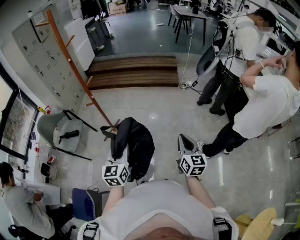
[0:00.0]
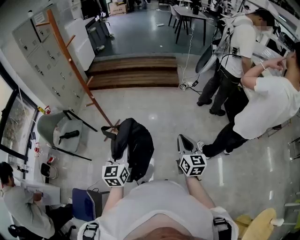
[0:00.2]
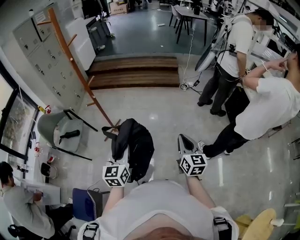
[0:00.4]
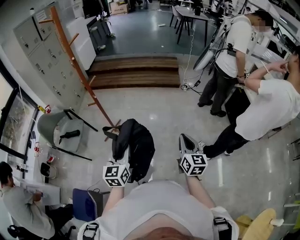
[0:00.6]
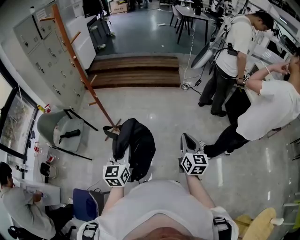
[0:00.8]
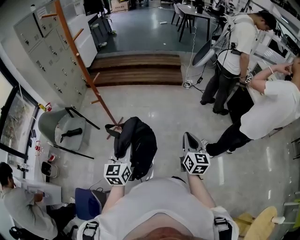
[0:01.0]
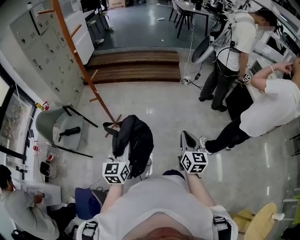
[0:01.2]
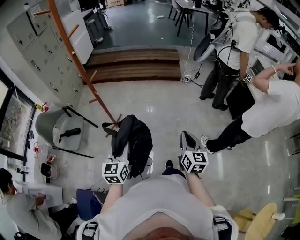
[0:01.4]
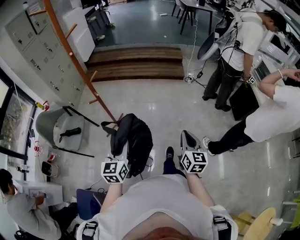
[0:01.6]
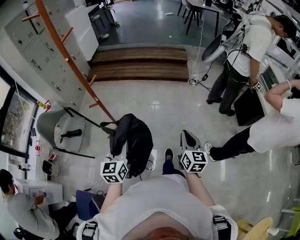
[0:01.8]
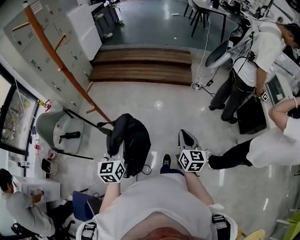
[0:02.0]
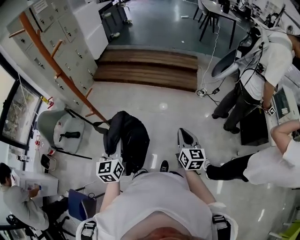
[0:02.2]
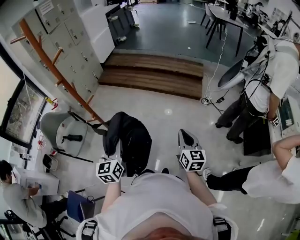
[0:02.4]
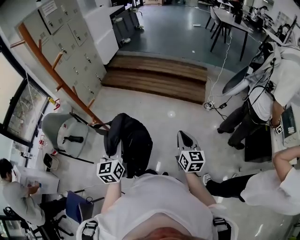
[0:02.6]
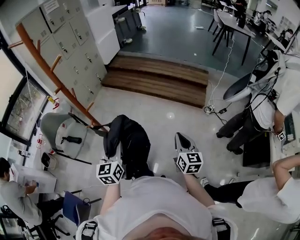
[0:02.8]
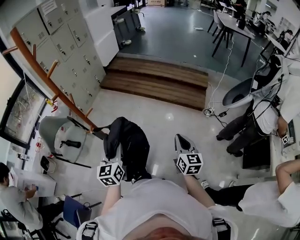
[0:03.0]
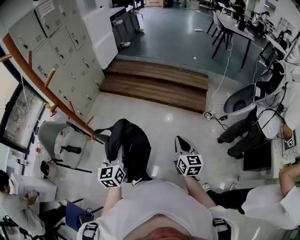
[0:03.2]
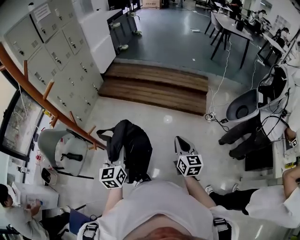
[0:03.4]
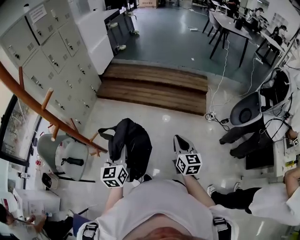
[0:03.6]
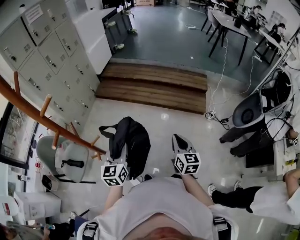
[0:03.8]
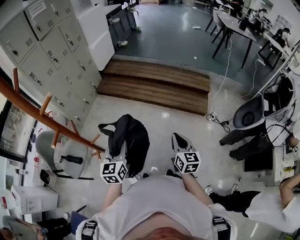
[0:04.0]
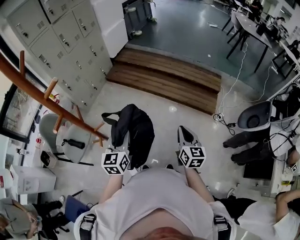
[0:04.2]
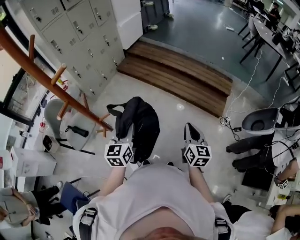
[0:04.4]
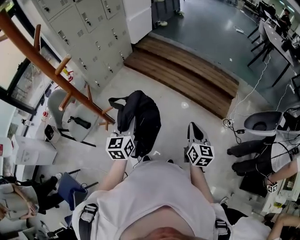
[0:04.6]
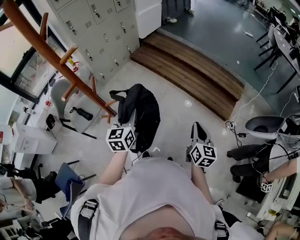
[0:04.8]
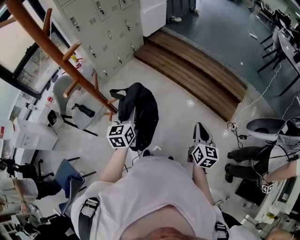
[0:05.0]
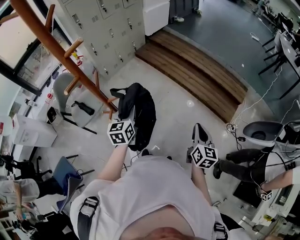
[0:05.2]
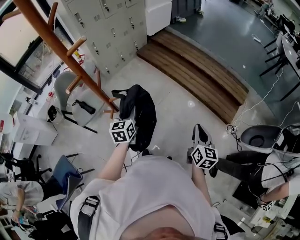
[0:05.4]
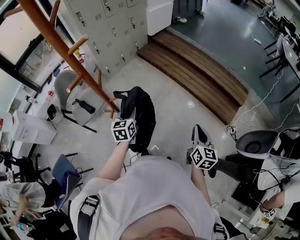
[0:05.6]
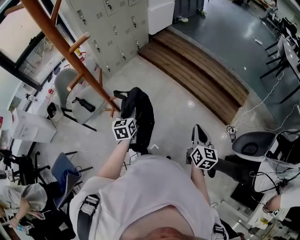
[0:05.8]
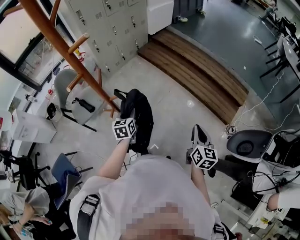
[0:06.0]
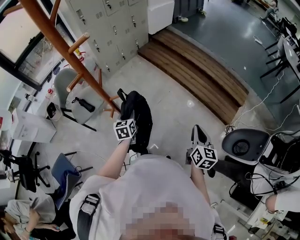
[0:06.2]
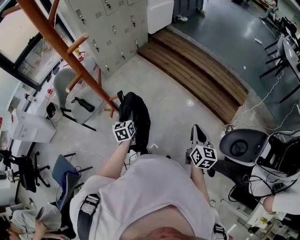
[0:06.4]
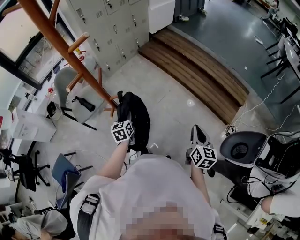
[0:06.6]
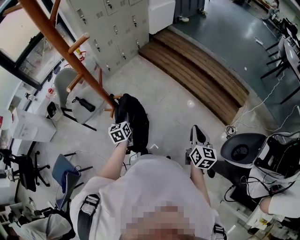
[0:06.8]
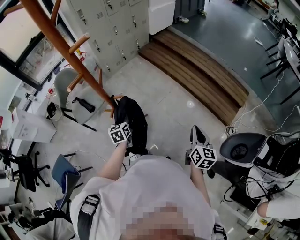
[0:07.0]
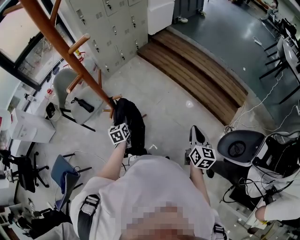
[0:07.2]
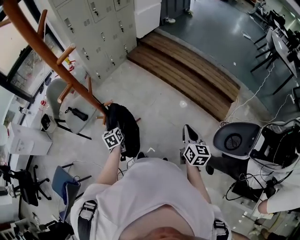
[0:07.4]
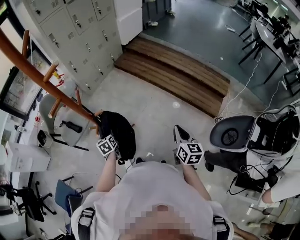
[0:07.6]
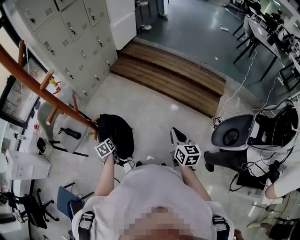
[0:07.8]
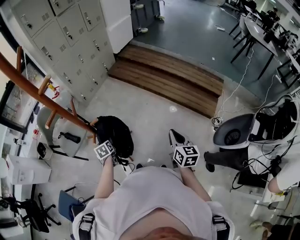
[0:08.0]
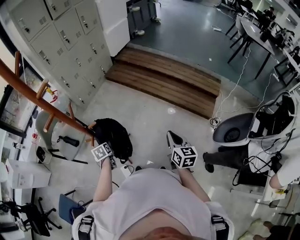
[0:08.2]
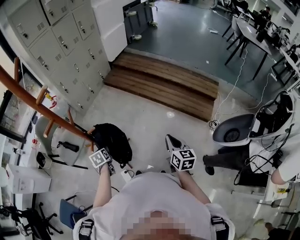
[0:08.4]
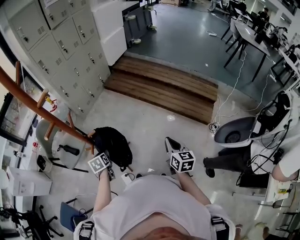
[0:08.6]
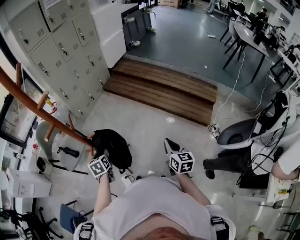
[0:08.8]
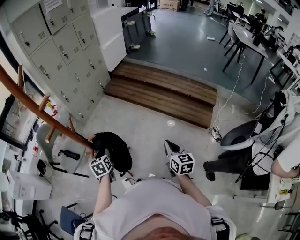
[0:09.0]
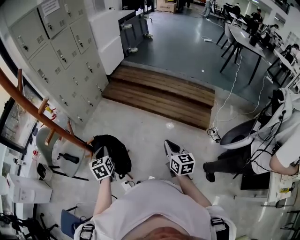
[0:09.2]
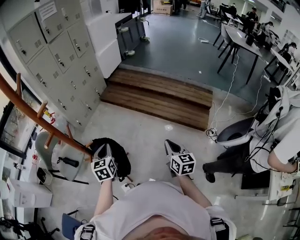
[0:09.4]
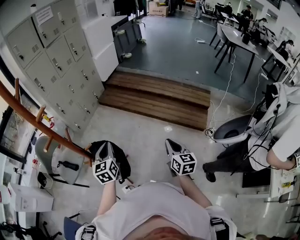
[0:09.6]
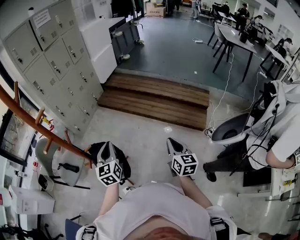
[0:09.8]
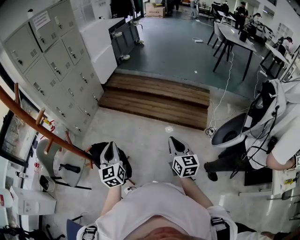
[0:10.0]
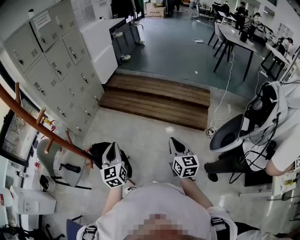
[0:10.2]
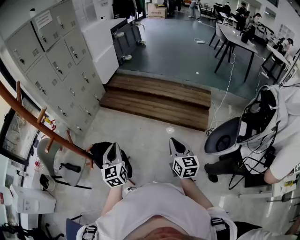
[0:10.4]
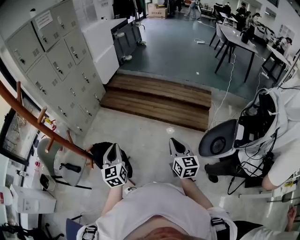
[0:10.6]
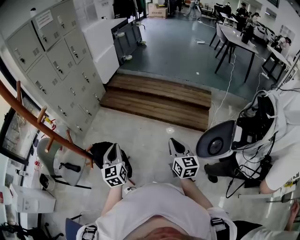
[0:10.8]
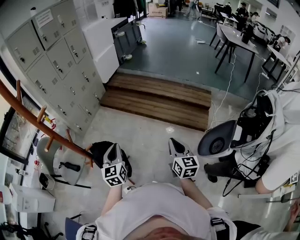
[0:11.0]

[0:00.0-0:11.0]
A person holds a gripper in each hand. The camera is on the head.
0.0 to 1.6 s: The grippers both shift to the left and forward by about 10 cm.
1.6 to 3.2 s: The grippers both shift forward by some 40 cm. The right gripper turns by roughly 20 degrees. Meanwhile the left gripper changes its angle by about 20 degrees.
3.2 to 4.8 s: Both grippers move forward, approximately 15 cm.
4.8 to 6.2 s: The left gripper heads downward and to the left, covering approximately 15 cm, and rotates roughly 20 degrees.
6.2 to 7.8 s: The left gripper moves downward and to the left, some 10 cm, and opens.
7.8 to 9.4 s: The left gripper is displaced upward and to the right by roughly 25 cm, swivels about 30 degrees, and closes up.
9.4 to 11.0 s: The left gripper heads to the right, covering approximately 5 cm.

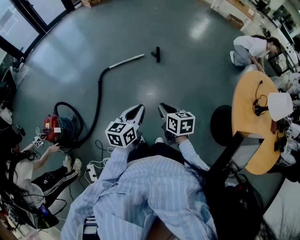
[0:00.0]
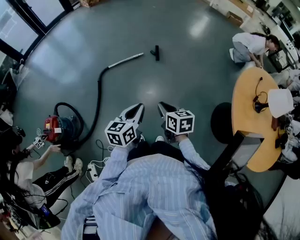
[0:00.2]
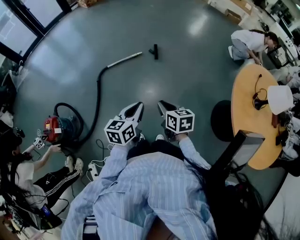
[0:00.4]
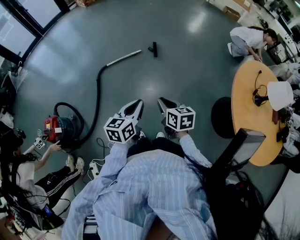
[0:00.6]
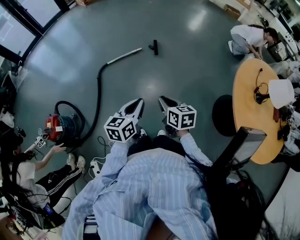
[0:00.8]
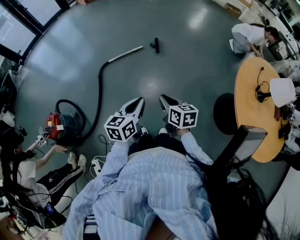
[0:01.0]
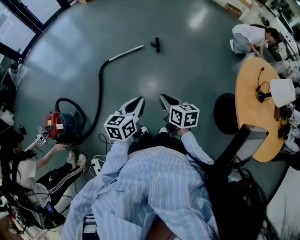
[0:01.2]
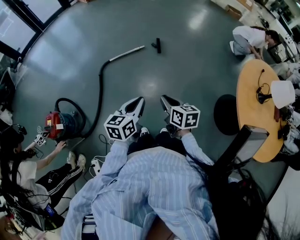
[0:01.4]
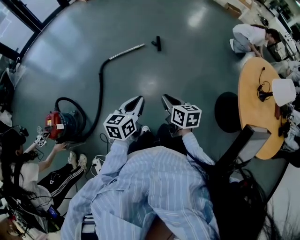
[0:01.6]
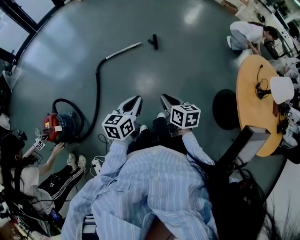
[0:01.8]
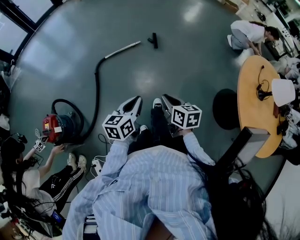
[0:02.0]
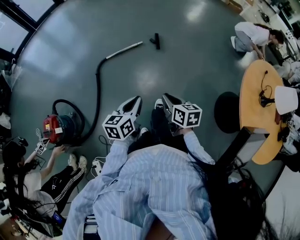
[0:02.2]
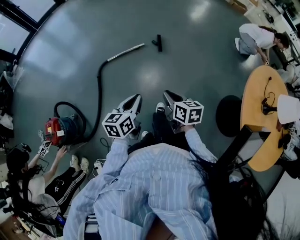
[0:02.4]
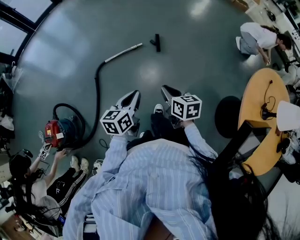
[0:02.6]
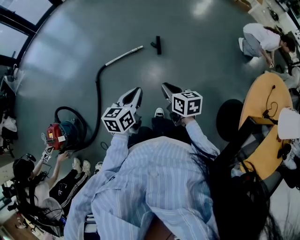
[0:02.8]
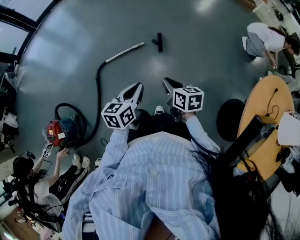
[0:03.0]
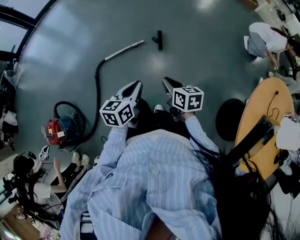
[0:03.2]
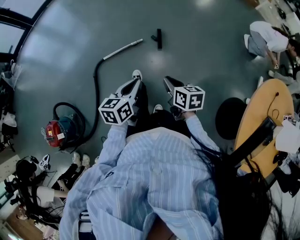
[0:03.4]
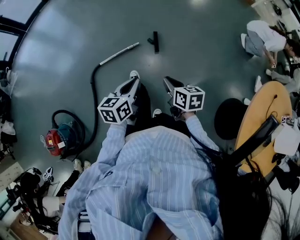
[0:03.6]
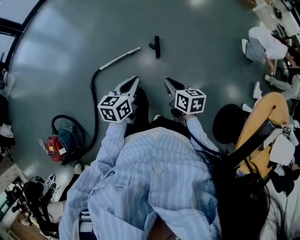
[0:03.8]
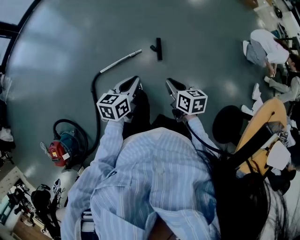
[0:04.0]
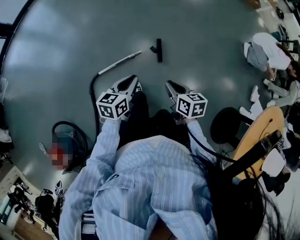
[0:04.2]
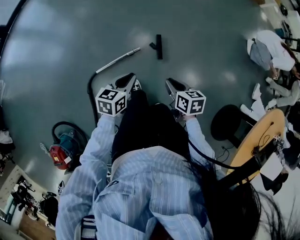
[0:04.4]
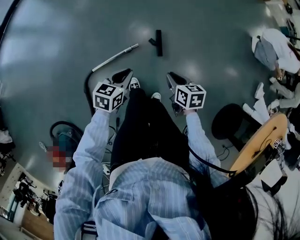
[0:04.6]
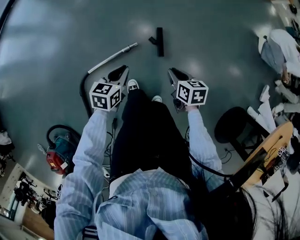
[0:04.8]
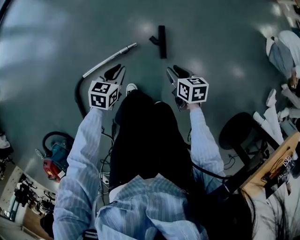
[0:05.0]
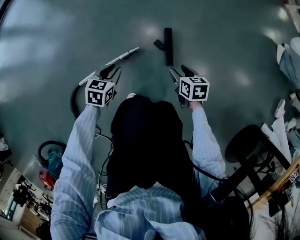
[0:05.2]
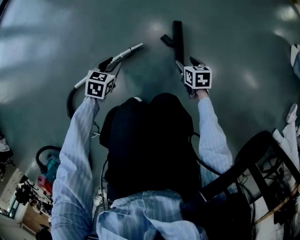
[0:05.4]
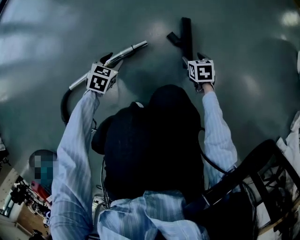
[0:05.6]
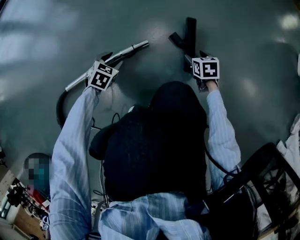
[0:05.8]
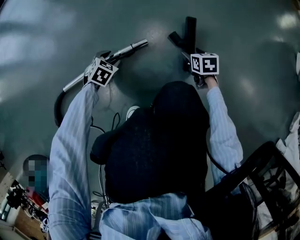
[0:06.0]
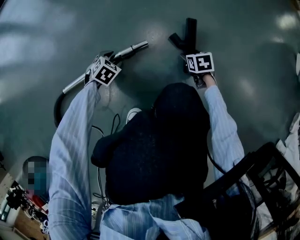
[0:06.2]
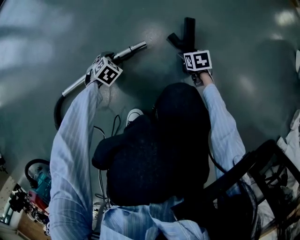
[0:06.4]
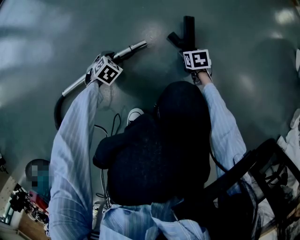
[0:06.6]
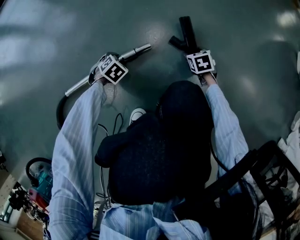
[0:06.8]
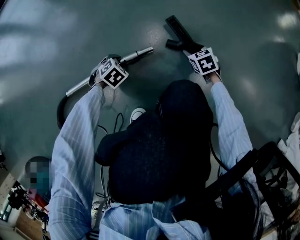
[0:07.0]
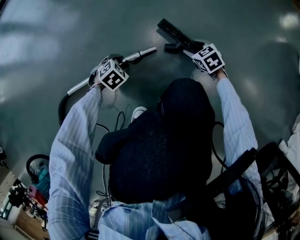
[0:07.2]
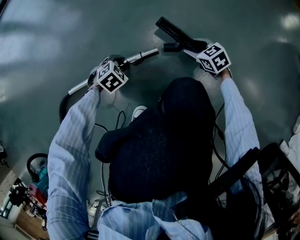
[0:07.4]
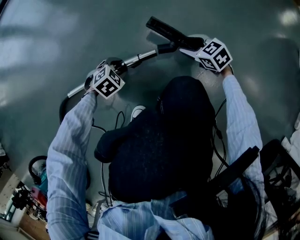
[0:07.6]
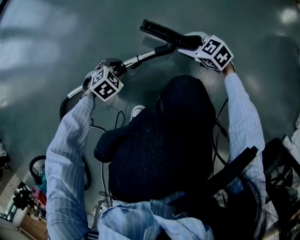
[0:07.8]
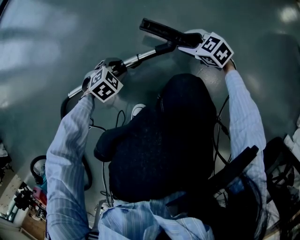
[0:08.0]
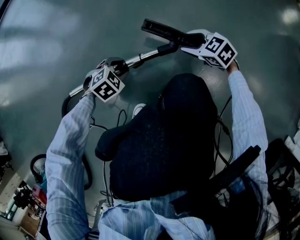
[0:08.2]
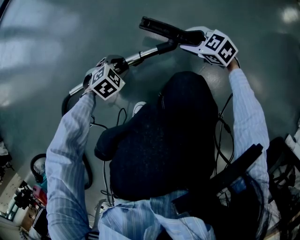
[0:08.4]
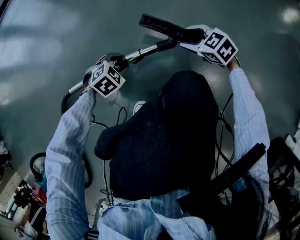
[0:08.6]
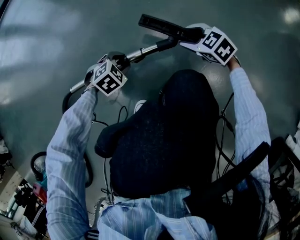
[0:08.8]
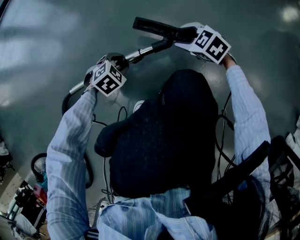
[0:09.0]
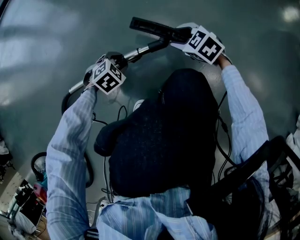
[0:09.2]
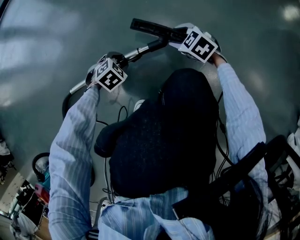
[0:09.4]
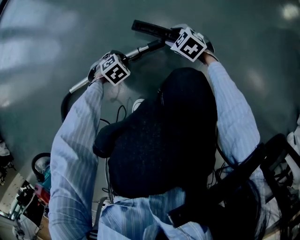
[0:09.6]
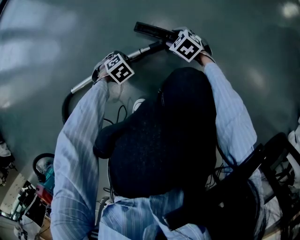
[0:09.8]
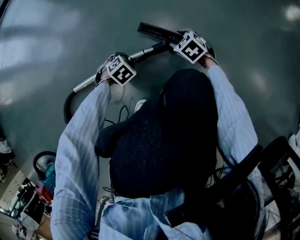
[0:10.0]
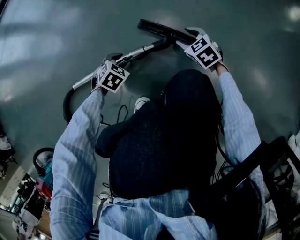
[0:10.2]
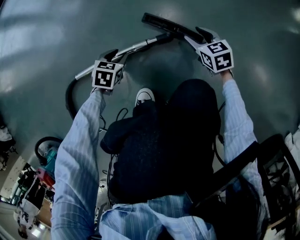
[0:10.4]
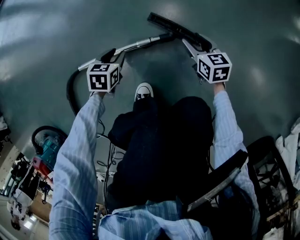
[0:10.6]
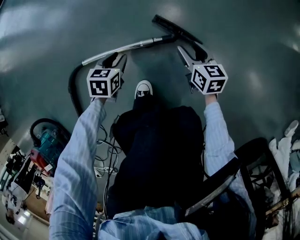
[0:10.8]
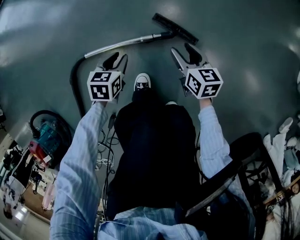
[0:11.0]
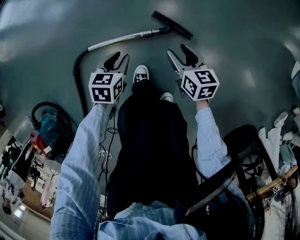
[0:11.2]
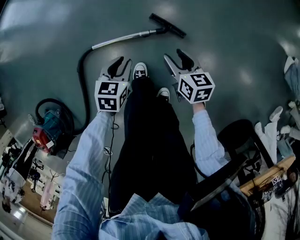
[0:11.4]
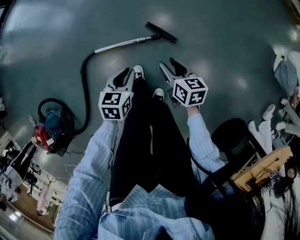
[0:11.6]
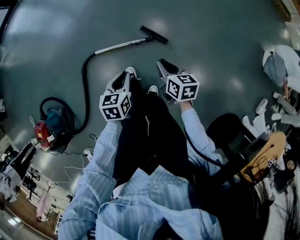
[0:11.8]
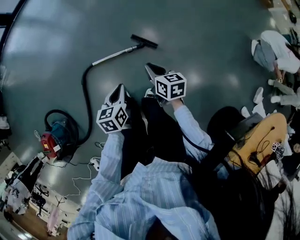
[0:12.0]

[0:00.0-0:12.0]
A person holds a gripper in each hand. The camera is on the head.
0.0 to 1.6 s: The left gripper is displaced to the left by roughly 5 cm.
1.6 to 3.0 s: The two grippers go about 30 cm forward.
3.0 to 4.4 s: The grippers both shift forward by about 35 cm.
4.4 to 6.0 s: The two grippers go about 70 cm downward. The left gripper tilts its fingers roughly 30 degrees downward, and opens, while the right gripper turns by about 20 degrees, and opens up.
6.0 to 7.6 s: The right gripper ends up roughly 10 cm from where it was, and turns by about 40 degrees. Meanwhile the left gripper changes place by some 5 cm.
7.6 to 9.0 s: The grippers move only a little.
9.0 to 10.4 s: The right gripper goes downward and returns, some 10 cm each way, and changes its angle by some 30 degrees. Meanwhile the left gripper travels downward and back again, about 5 cm each way, and rotates about 40 degrees.
10.4 to 12.0 s: The two grippers go approximately 70 cm upward. The right gripper changes its angle by some 30 degrees, and closes up; the left gripper rotates some 40 degrees, and closes up.

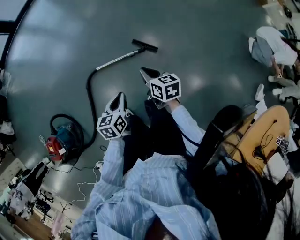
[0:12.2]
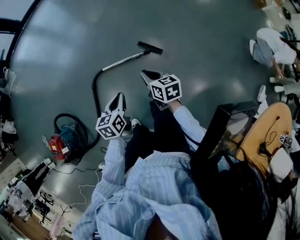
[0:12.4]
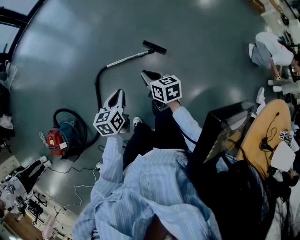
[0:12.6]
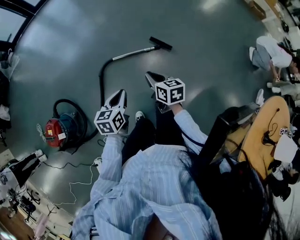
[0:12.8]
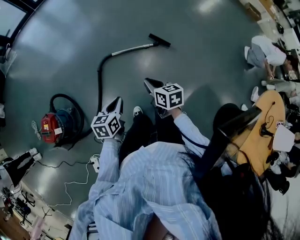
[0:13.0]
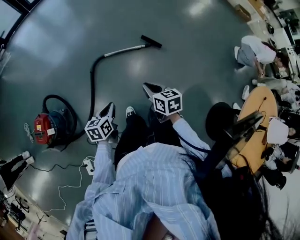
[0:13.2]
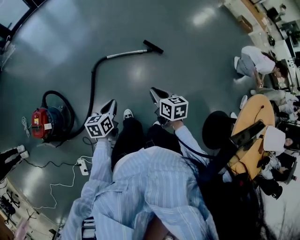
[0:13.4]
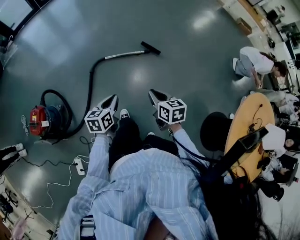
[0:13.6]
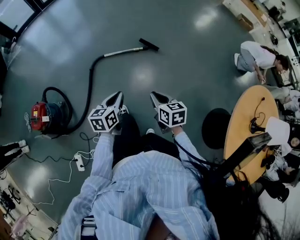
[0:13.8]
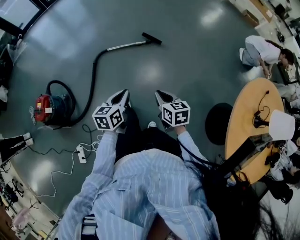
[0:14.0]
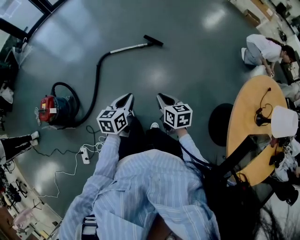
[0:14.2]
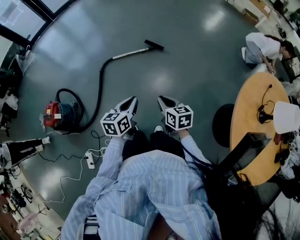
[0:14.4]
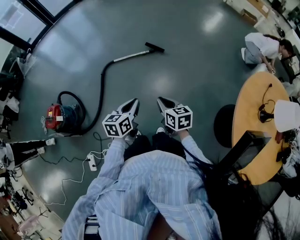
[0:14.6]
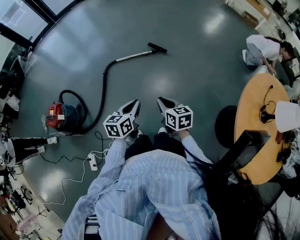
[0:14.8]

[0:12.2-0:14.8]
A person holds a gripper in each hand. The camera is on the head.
12.2 to 13.4 s: Both grippers move backward and to the left, some 40 cm.
13.4 to 14.8 s: The right gripper moves backward and to the right, some 25 cm. The left gripper shifts about 30 cm to the right, backward and upward.
